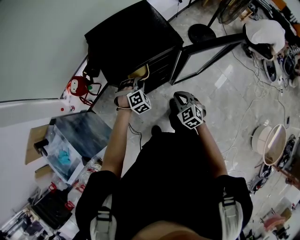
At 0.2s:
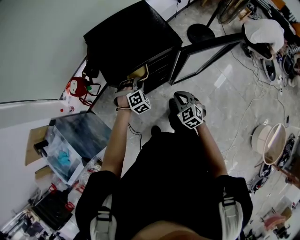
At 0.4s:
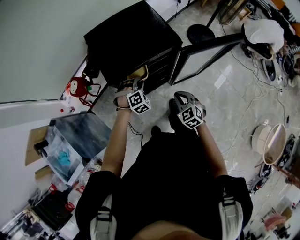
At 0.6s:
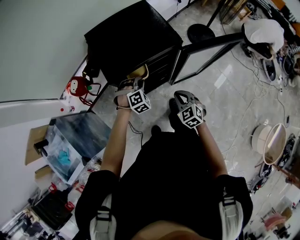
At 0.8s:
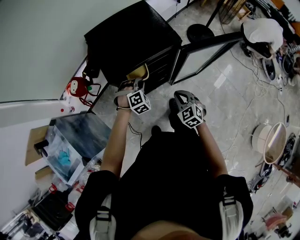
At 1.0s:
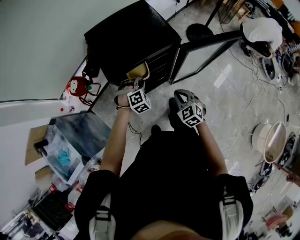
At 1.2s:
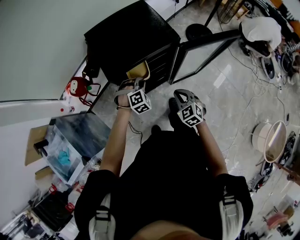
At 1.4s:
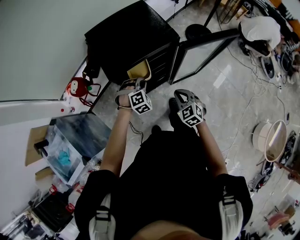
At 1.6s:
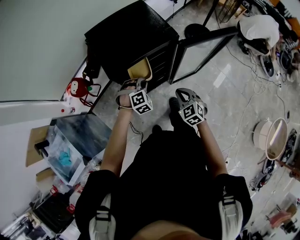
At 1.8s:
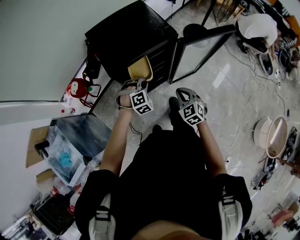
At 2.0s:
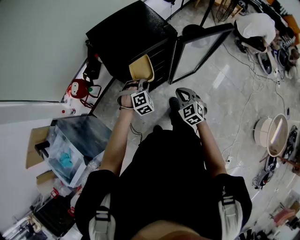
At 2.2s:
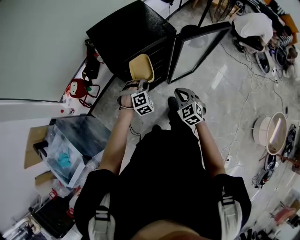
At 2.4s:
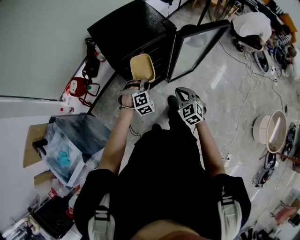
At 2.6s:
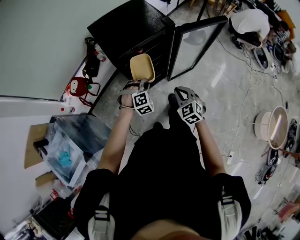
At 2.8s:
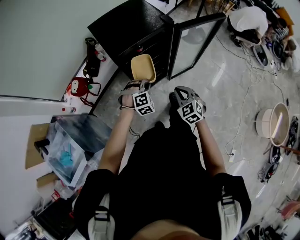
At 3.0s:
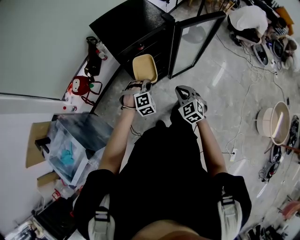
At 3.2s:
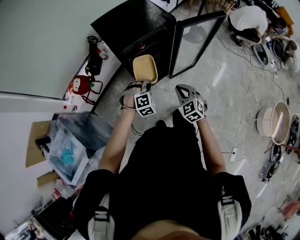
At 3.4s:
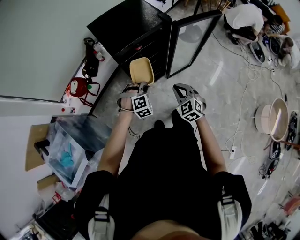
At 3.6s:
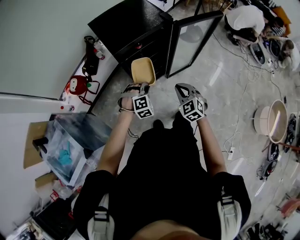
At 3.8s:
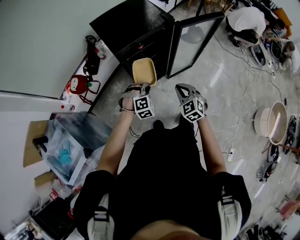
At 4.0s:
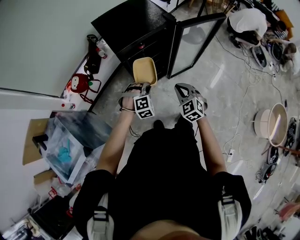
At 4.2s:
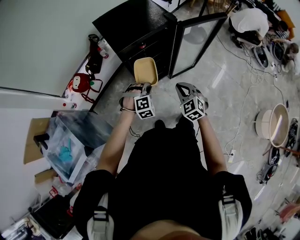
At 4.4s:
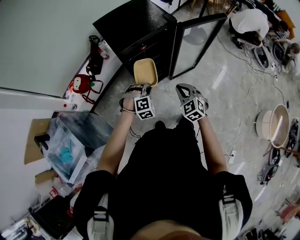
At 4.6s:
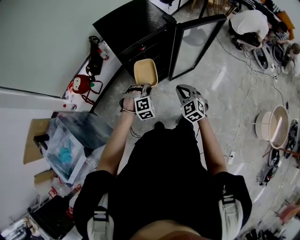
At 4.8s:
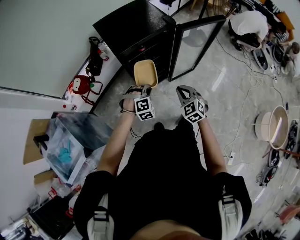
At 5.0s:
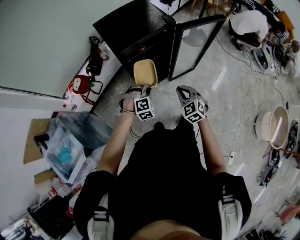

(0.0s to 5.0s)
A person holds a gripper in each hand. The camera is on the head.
0.0s - 1.6s: The left gripper moves approximately 5 cm.
1.6s - 3.4s: The right gripper shifts approximately 15 cm backward and to the left. The left gripper heads backward, covering about 15 cm.
3.4s - 5.0s: The grippers move only a little.

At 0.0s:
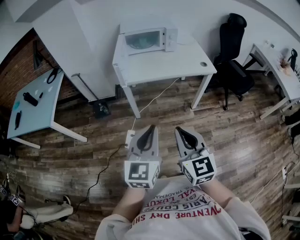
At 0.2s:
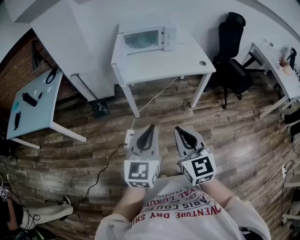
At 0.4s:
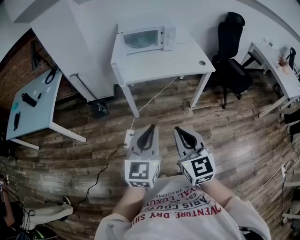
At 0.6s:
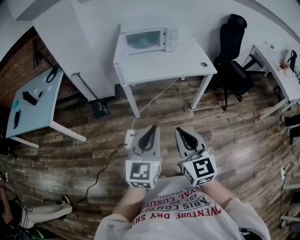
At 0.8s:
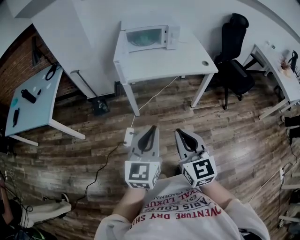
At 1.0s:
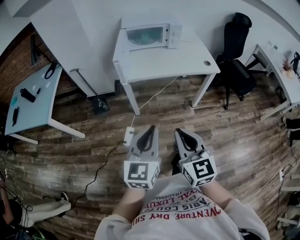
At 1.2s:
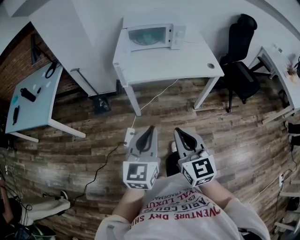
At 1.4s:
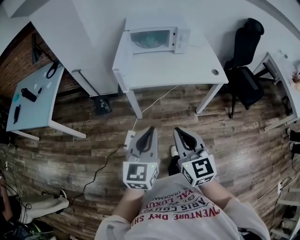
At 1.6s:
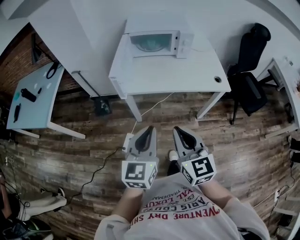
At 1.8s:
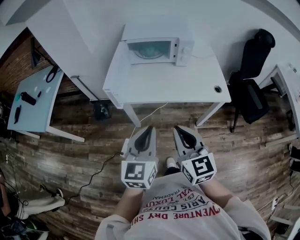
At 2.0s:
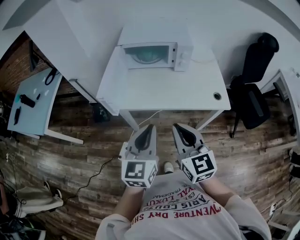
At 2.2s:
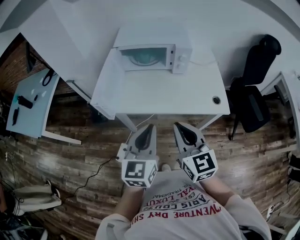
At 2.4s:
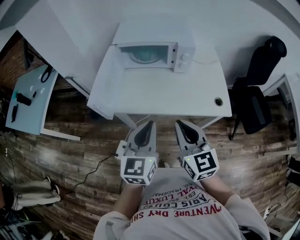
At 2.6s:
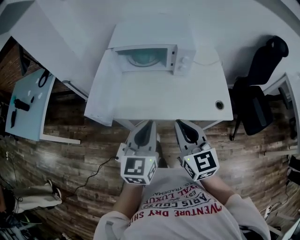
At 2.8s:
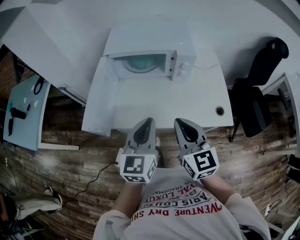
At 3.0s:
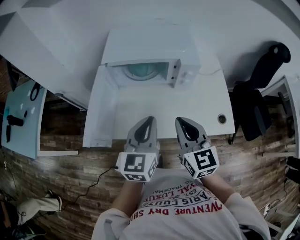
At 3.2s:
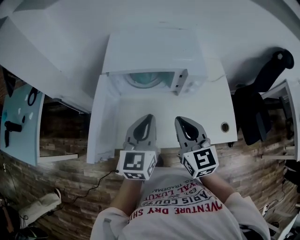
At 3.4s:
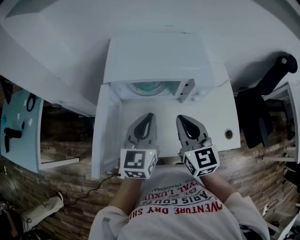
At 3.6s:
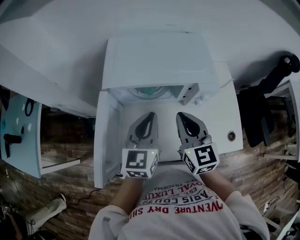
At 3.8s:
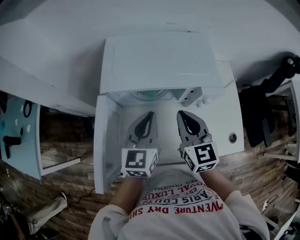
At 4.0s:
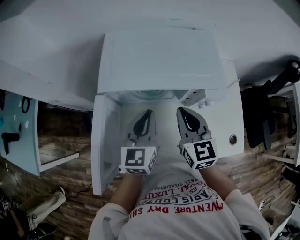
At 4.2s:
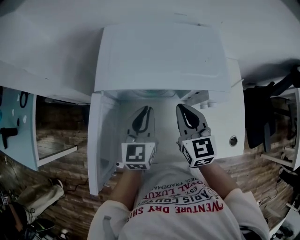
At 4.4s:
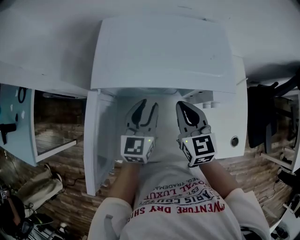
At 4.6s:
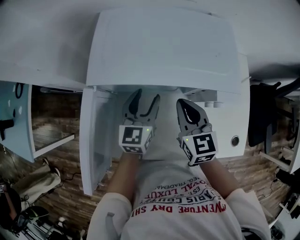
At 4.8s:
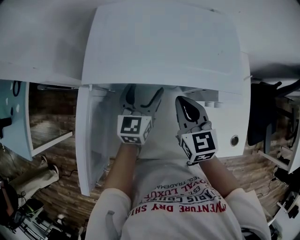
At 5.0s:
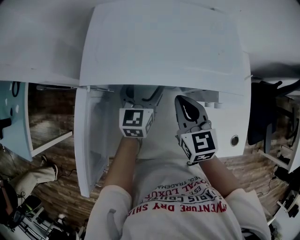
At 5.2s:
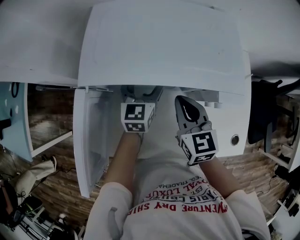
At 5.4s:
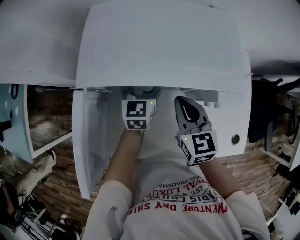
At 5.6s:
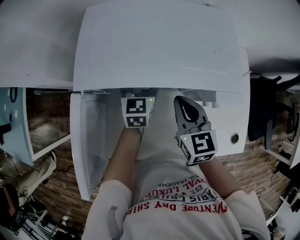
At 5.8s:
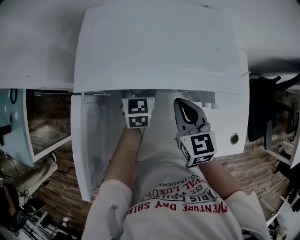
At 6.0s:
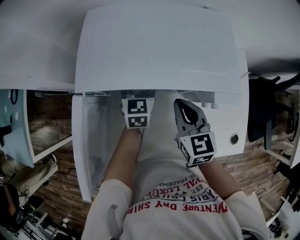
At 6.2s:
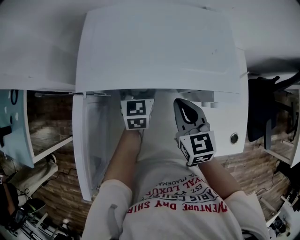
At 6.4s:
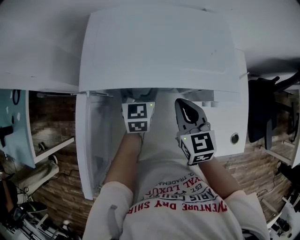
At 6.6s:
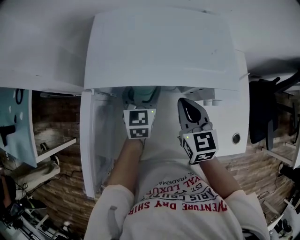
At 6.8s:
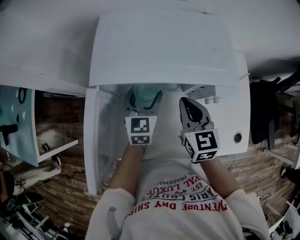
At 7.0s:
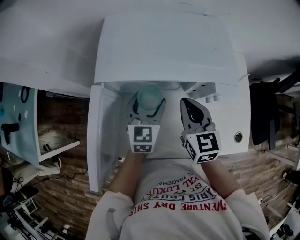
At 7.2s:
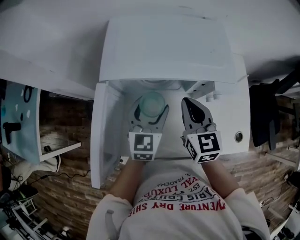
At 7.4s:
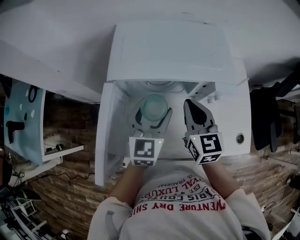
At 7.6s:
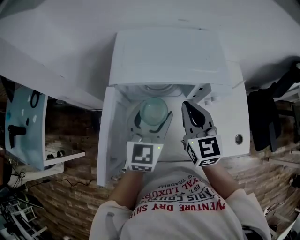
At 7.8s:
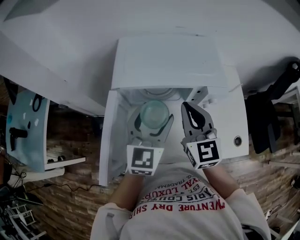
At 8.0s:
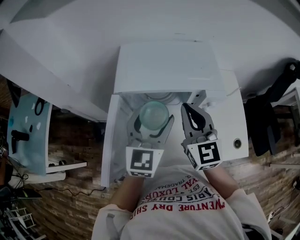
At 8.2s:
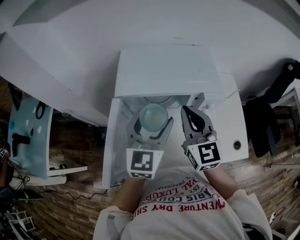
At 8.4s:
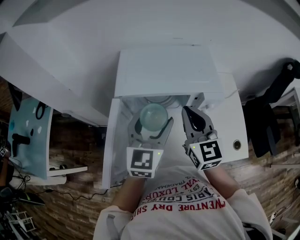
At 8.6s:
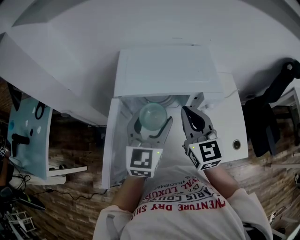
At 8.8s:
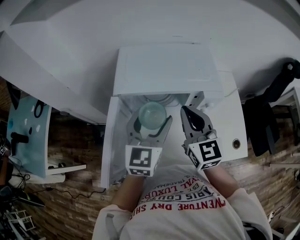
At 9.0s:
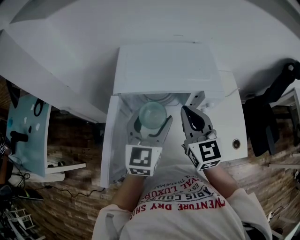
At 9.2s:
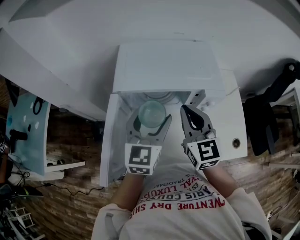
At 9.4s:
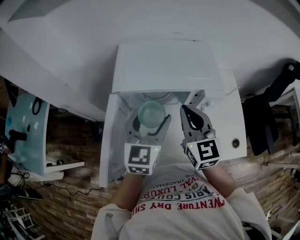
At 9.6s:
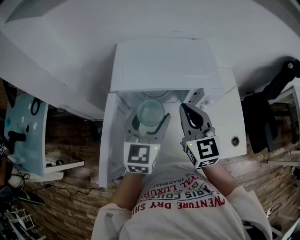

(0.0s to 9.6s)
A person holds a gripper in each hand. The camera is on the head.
0.0s - 1.6s: Both grippers travel together forward, roughly 15 cm.
1.6s - 3.2s: The pair of grippers is taken forward, roughly 40 cm.
3.2s - 4.8s: Both grippers move forward and downward, about 25 cm. The left gripper opens up.
6.4s - 8.0s: The right gripper shifts roughly 15 cm upward, and changes its angle by about 30 degrees. The left gripper travels upward and backward by approximately 25 cm, and changes its angle by roughly 20 degrees.
8.0s - 9.6s: The grippers stay close to where they were, moving slightly.

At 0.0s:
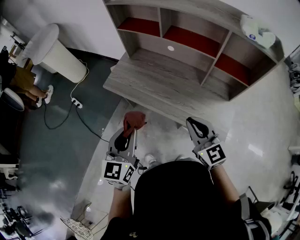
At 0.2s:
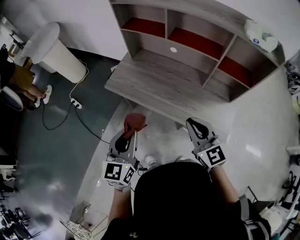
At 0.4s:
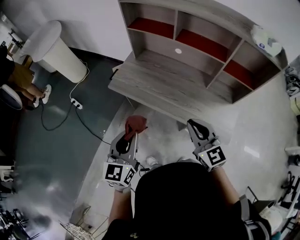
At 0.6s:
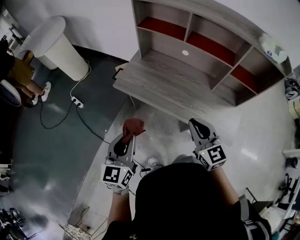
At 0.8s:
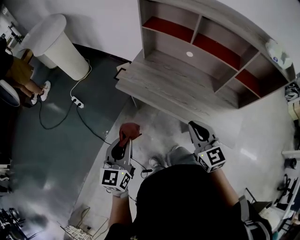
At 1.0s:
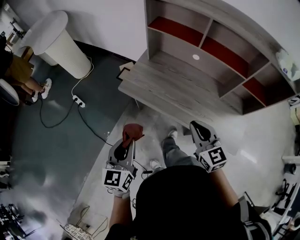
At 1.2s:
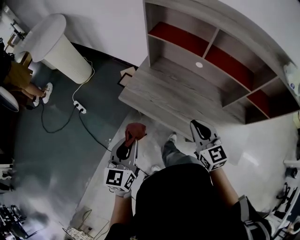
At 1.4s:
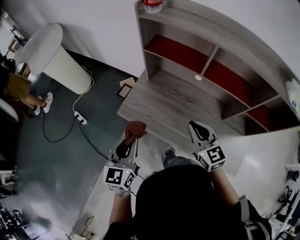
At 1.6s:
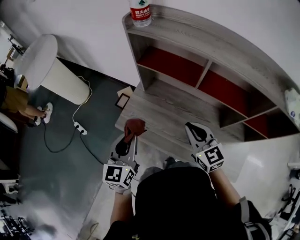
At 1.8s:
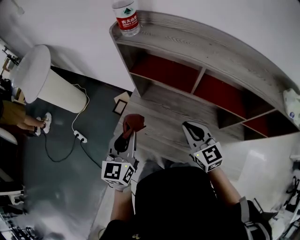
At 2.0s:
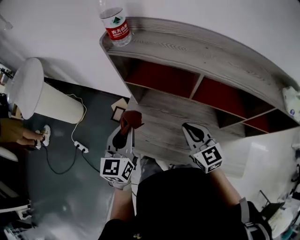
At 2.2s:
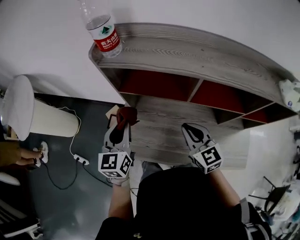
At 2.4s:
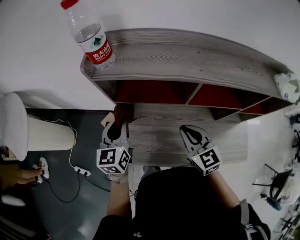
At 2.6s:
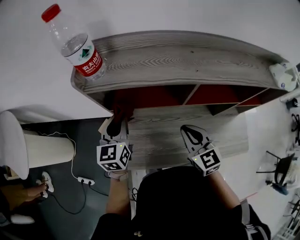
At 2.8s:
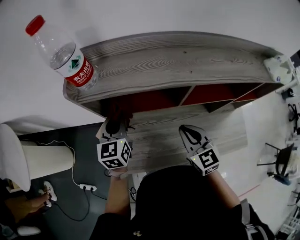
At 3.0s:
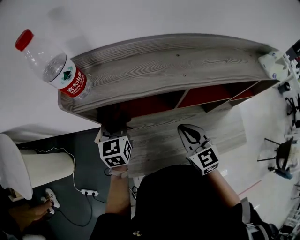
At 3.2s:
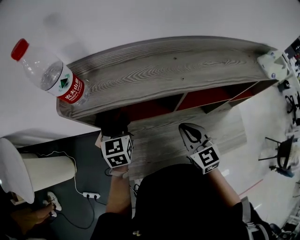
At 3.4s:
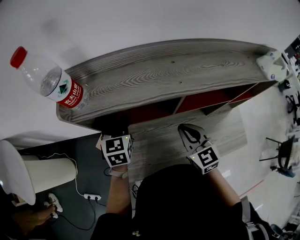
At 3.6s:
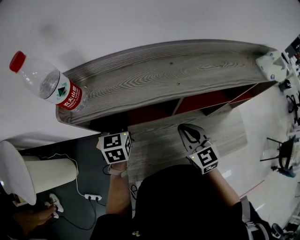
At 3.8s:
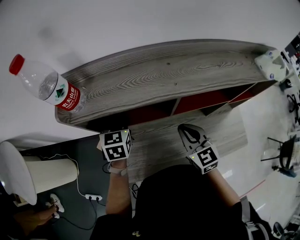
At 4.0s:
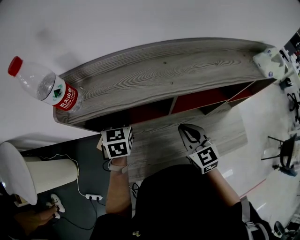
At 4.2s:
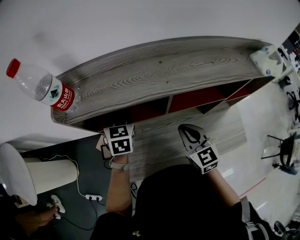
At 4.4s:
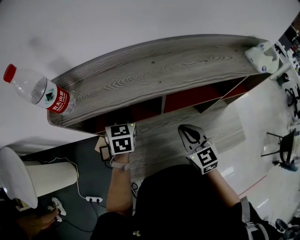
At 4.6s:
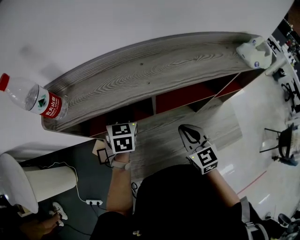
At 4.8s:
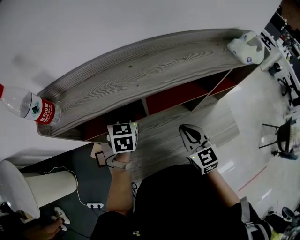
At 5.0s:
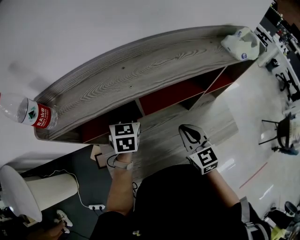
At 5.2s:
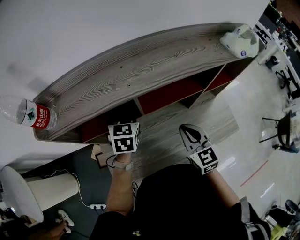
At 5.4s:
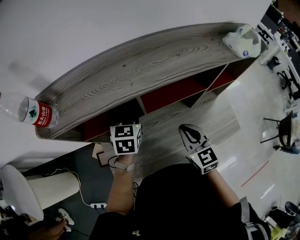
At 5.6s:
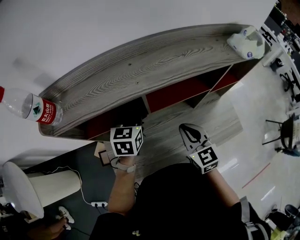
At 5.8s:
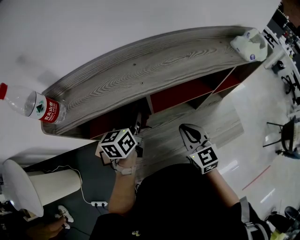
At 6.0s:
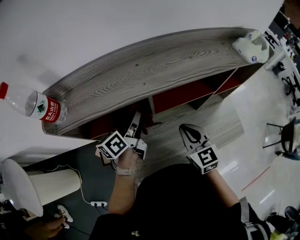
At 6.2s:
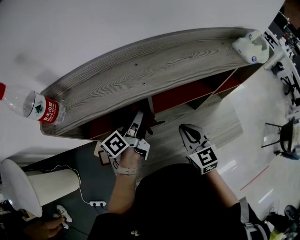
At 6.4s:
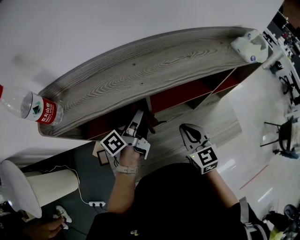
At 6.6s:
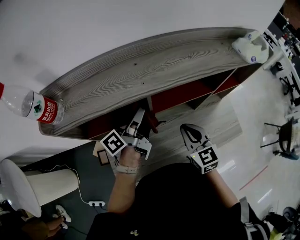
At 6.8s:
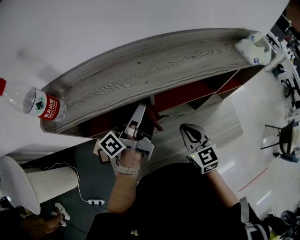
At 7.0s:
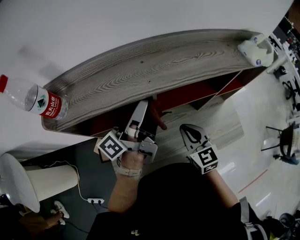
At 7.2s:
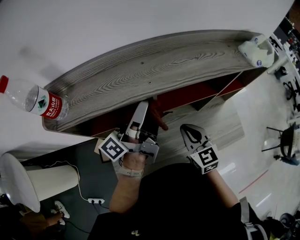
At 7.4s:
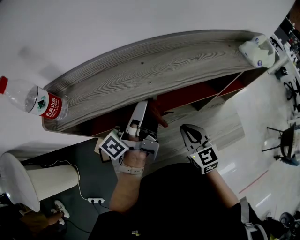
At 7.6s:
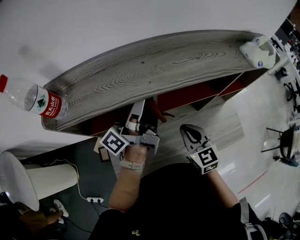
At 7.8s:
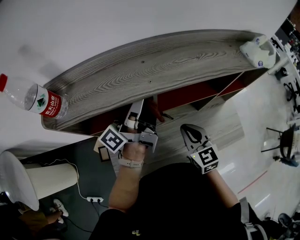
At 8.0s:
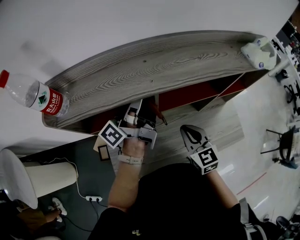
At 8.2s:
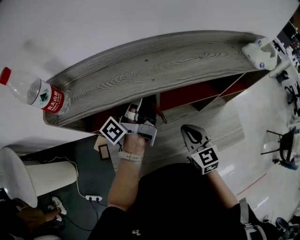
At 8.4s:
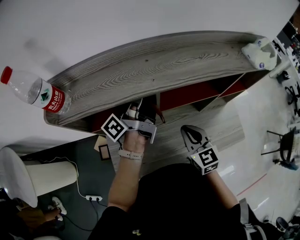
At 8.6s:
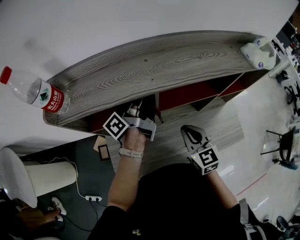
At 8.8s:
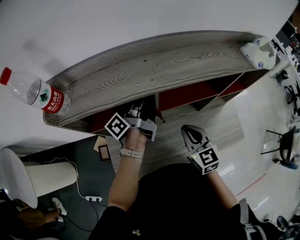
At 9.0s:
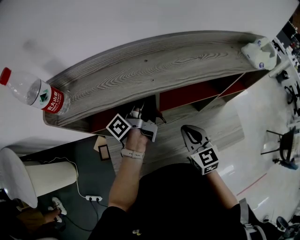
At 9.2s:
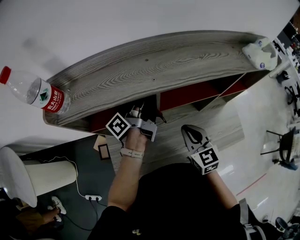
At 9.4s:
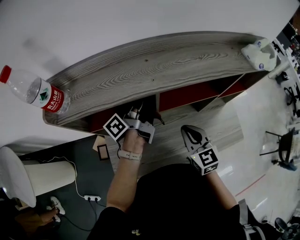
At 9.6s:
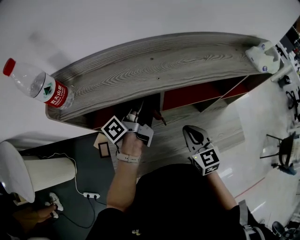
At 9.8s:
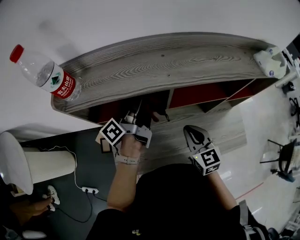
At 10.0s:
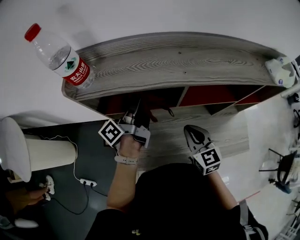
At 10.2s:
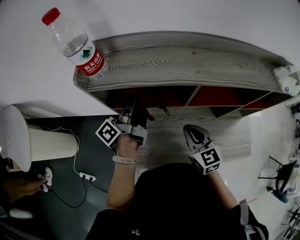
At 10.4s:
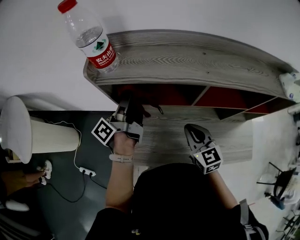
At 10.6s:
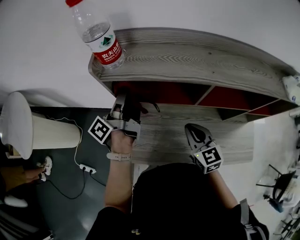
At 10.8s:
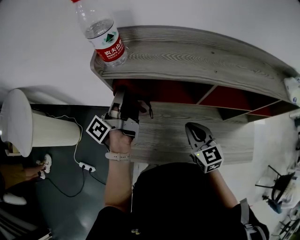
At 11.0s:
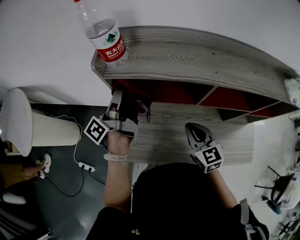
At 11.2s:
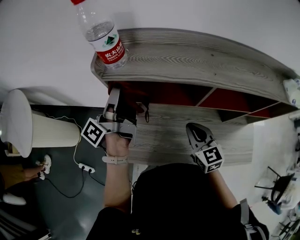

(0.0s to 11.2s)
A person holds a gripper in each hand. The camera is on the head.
0.0s - 1.6s: The right gripper is displaced forward by roughly 30 cm. Meanwhile the left gripper shifts some 30 cm forward and to the left.
1.6s - 3.2s: The left gripper ends up some 35 cm from where it was, and turns by some 30 degrees. The right gripper ends up about 10 cm from where it was, and swivels about 40 degrees.
3.2s - 4.8s: The left gripper is displaced to the right by some 15 cm; the right gripper is displaced to the right by about 10 cm.
4.8s - 6.4s: The left gripper rotates around the line of its fingers by some 70 degrees, counterclockwise from behind.
6.4s - 8.0s: The left gripper shifts approximately 10 cm upward, and swivels about 30 degrees.
8.0s - 9.6s: The left gripper shifts approximately 10 cm downward, and changes its angle by roughly 20 degrees.
9.6s - 11.2s: The right gripper goes some 10 cm to the left; the left gripper moves to the left, roughly 25 cm, and turns by roughly 30 degrees.
